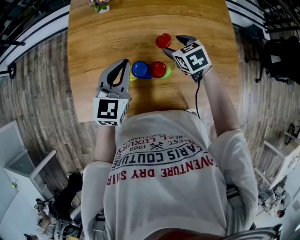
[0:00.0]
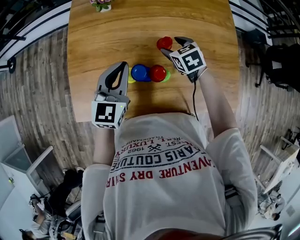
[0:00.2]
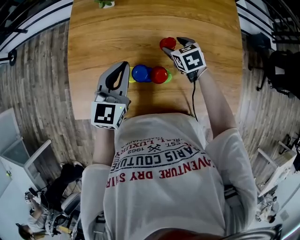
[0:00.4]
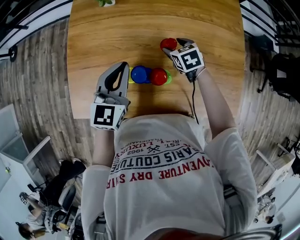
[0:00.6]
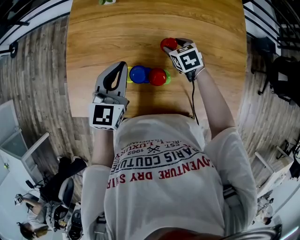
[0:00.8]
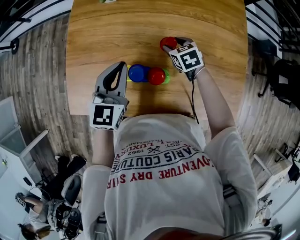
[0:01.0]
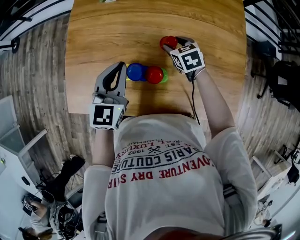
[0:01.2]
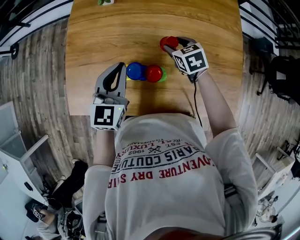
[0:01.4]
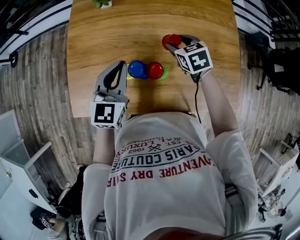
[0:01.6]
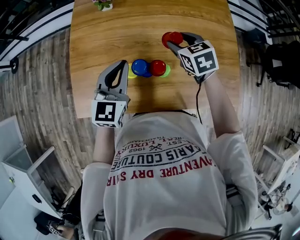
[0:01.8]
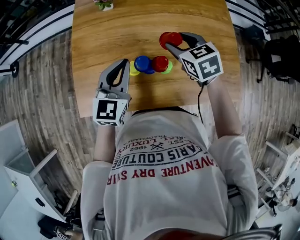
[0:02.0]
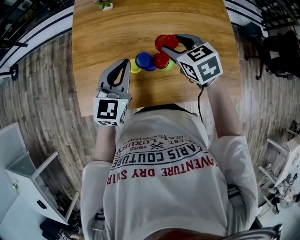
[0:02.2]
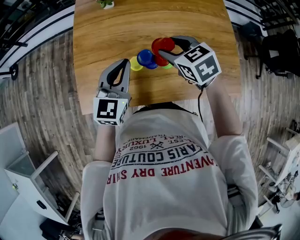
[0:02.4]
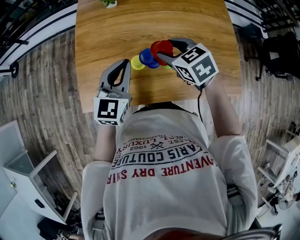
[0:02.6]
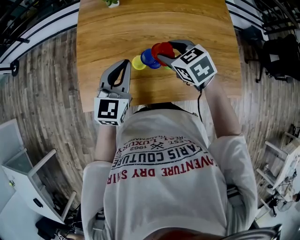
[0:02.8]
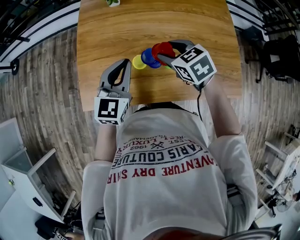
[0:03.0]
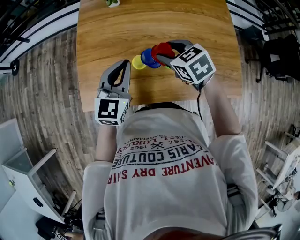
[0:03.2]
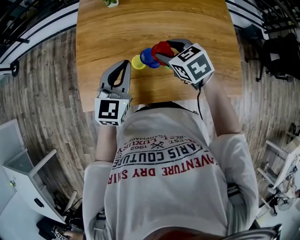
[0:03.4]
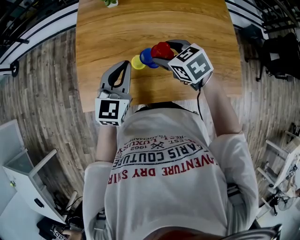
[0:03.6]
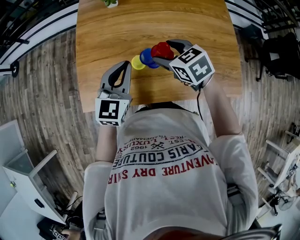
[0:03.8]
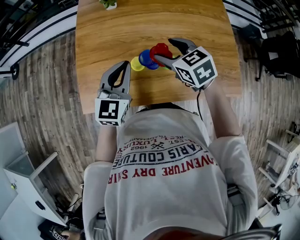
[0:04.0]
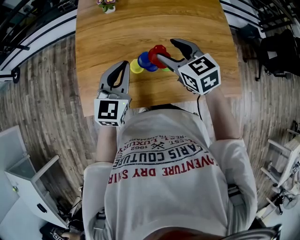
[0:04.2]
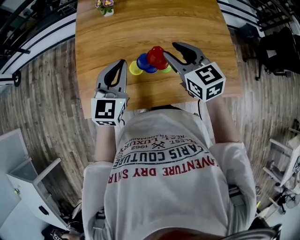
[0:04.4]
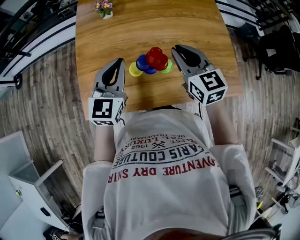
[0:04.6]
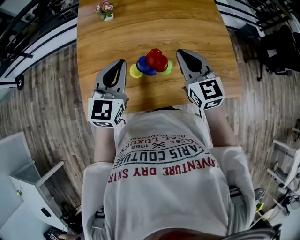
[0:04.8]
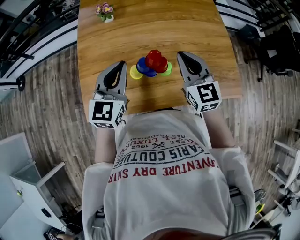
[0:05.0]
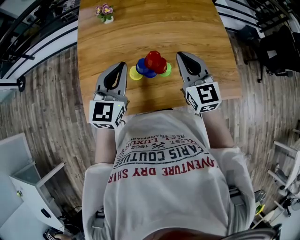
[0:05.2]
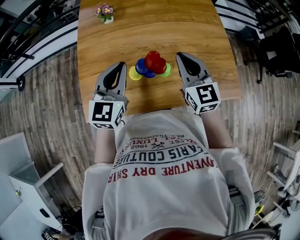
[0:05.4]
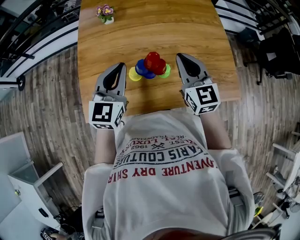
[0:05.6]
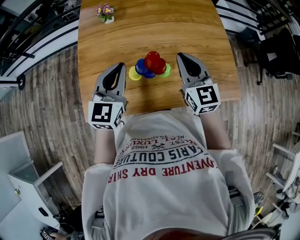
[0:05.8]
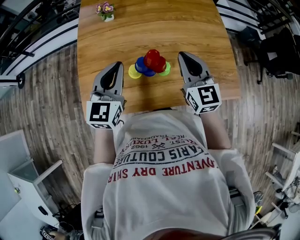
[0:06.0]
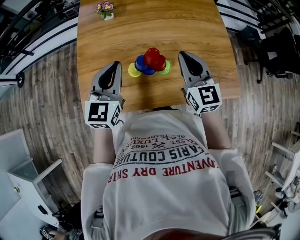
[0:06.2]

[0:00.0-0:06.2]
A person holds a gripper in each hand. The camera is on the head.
0:00.0 to 0:01.6: The right gripper reaches some 10 cm downward, then returns.
0:01.6 to 0:03.2: The left gripper shifts some 5 cm to the left; the right gripper goes about 15 cm to the left, backward and upward.
0:03.2 to 0:04.6: The right gripper shifts some 10 cm upward and to the right, turns by approximately 40 degrees, and closes up.
0:04.6 to 0:06.2: There are only small adjustments of the grippers.

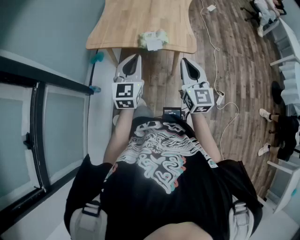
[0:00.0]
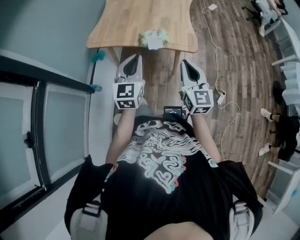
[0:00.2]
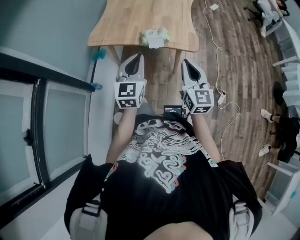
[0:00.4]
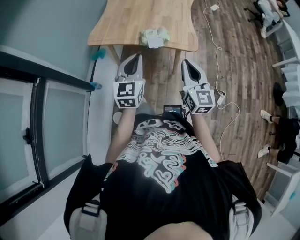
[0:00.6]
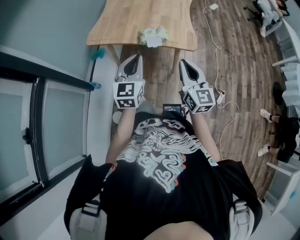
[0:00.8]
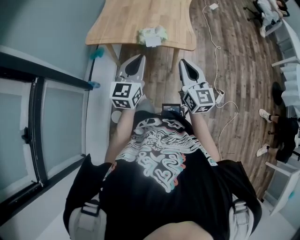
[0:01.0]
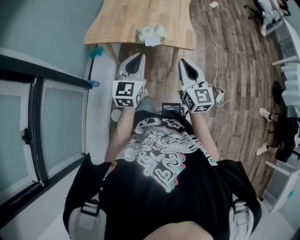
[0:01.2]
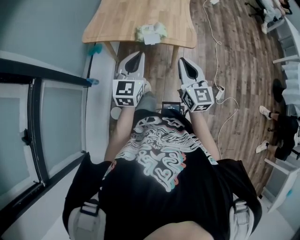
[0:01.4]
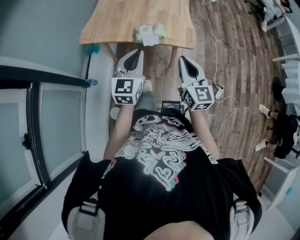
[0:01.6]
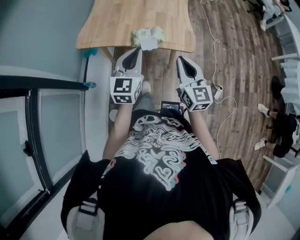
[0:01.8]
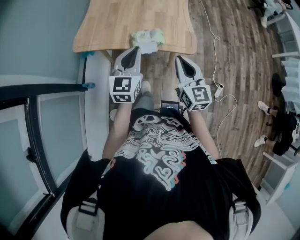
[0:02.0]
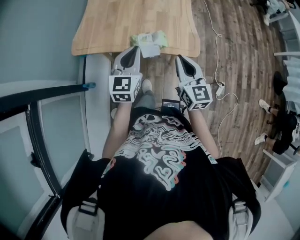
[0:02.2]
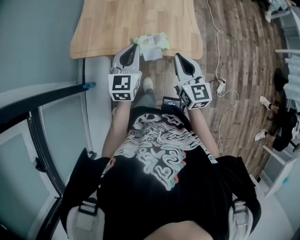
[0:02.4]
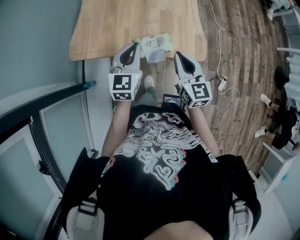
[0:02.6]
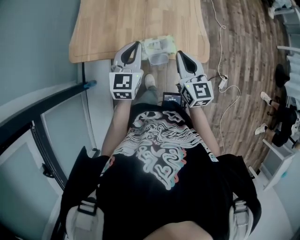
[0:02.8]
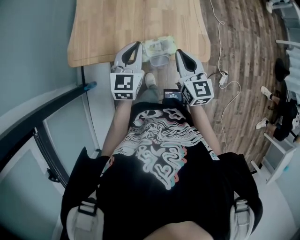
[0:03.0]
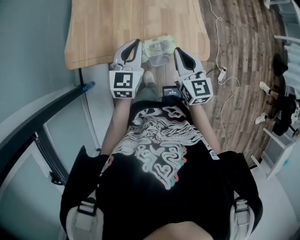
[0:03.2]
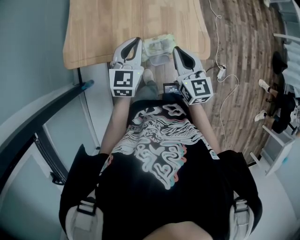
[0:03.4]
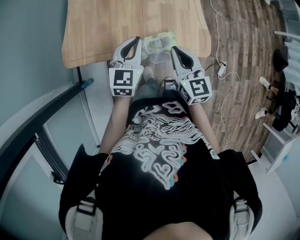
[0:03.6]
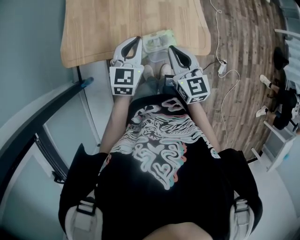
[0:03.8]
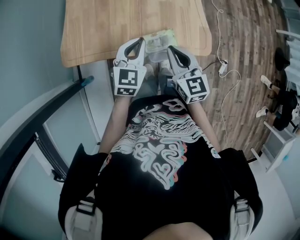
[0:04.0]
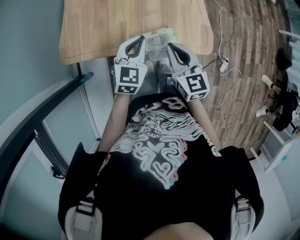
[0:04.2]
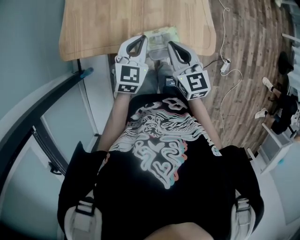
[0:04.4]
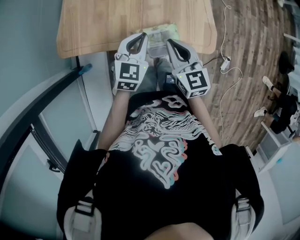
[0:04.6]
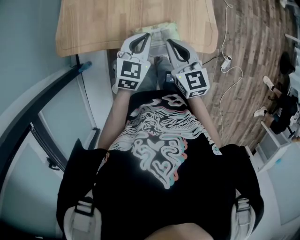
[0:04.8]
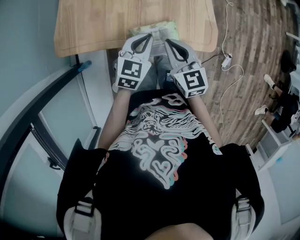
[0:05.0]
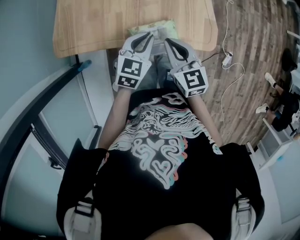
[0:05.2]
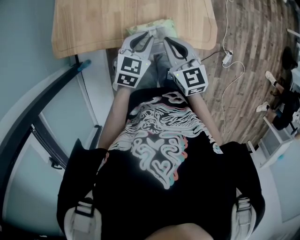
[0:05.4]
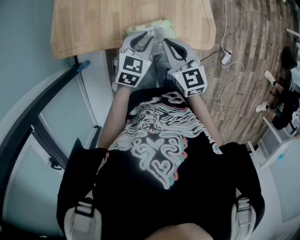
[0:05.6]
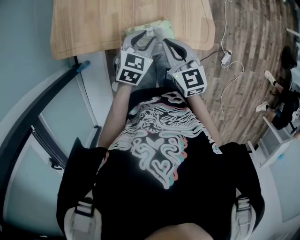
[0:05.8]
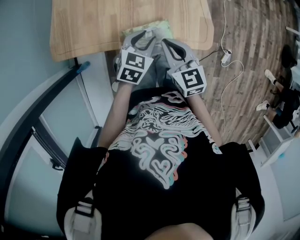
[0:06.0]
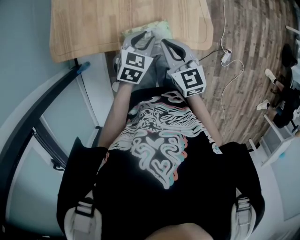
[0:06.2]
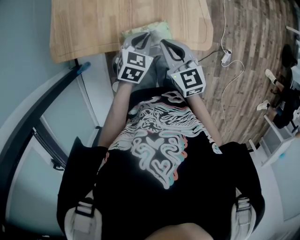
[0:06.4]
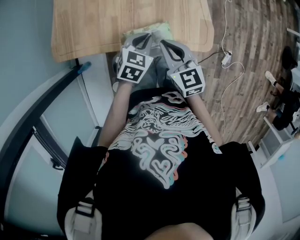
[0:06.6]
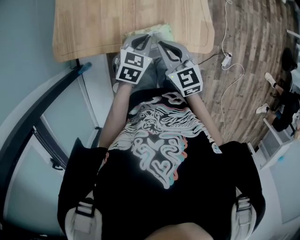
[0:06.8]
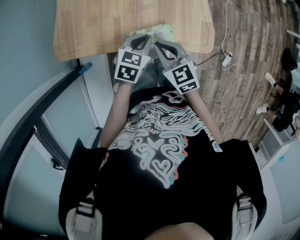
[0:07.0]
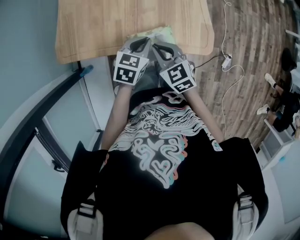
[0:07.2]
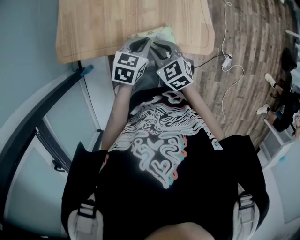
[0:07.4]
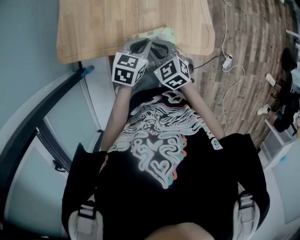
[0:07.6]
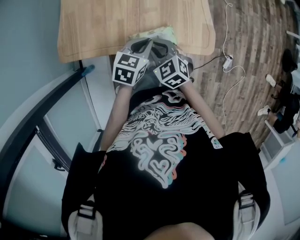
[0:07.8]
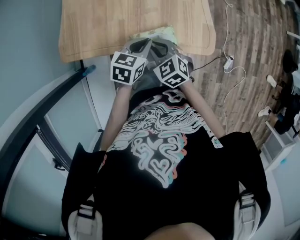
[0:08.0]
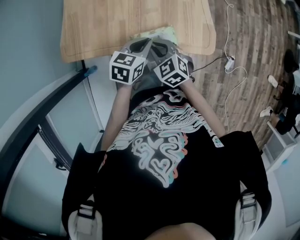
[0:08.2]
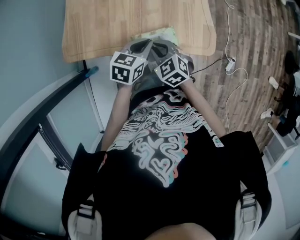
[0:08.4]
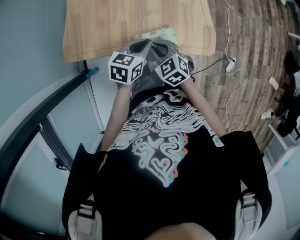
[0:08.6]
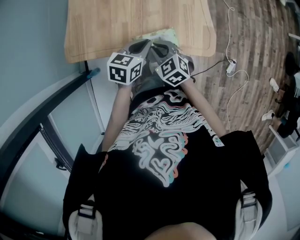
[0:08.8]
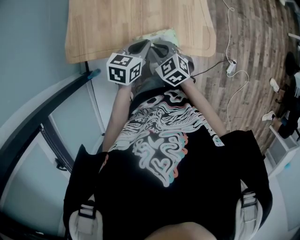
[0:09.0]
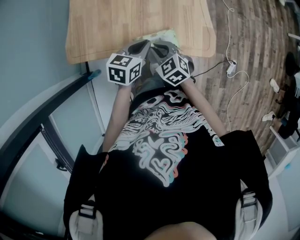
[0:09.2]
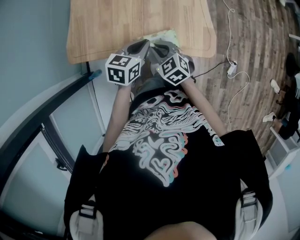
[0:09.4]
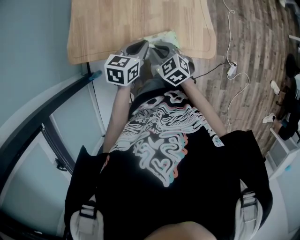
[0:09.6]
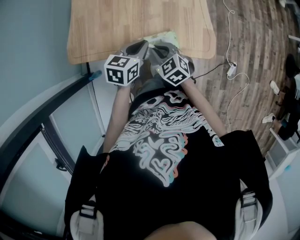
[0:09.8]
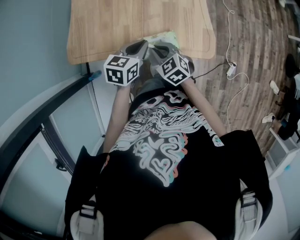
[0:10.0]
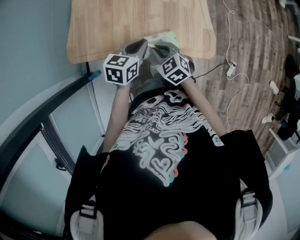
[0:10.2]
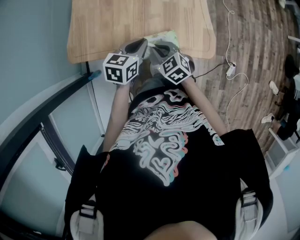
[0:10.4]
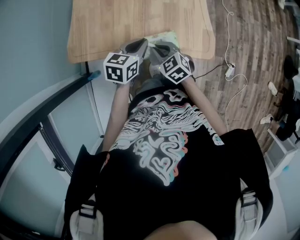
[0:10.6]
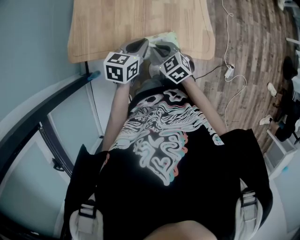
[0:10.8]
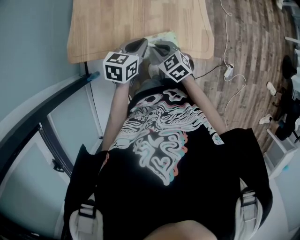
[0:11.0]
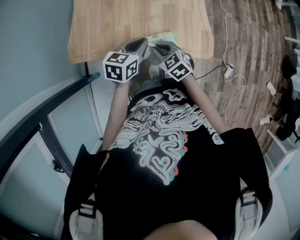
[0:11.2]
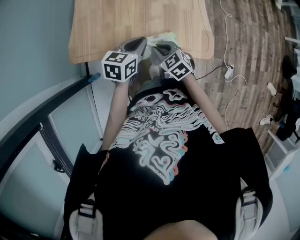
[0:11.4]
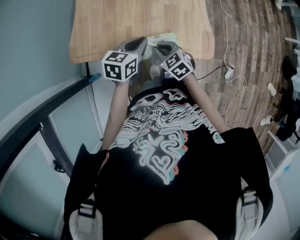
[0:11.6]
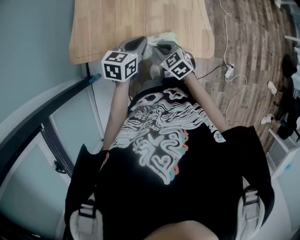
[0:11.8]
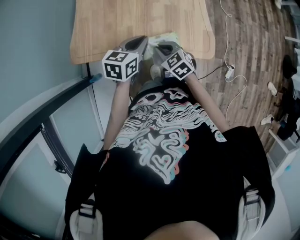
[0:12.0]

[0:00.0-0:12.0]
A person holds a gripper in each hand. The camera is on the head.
0:00.0 to 0:01.6: The left gripper moves roughly 5 cm. Meanwhile the right gripper ends up roughly 5 cm from where it was.
0:01.6 to 0:03.0: The two grippers go about 25 cm forward.
0:03.0 to 0:04.4: The left gripper moves downward, about 5 cm. Meanwhile the right gripper ends up about 5 cm from where it was.
0:04.4 to 0:06.0: The left gripper moves downward and to the right, approximately 10 cm, and opens its fingers.
0:06.0 to 0:07.6: The right gripper heads to the left, covering approximately 5 cm, and swivels about 30 degrees. Meanwhile the left gripper closes up.
0:07.6 to 0:10.4: There are only small adjustments of the grippers.
0:10.4 to 0:12.0: The grippers stay close to where they were, moving slightly.

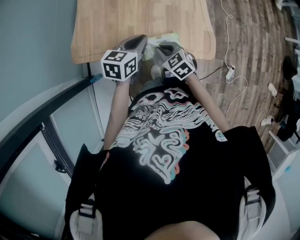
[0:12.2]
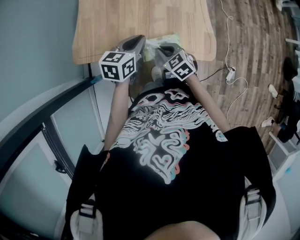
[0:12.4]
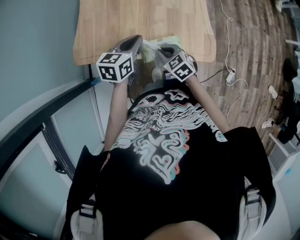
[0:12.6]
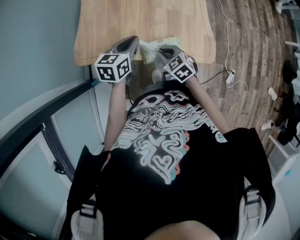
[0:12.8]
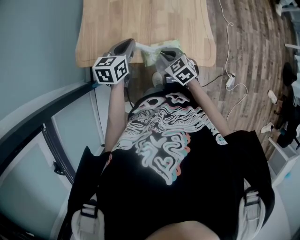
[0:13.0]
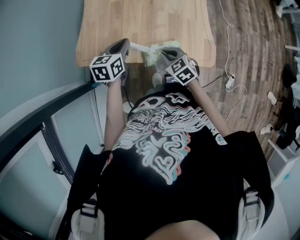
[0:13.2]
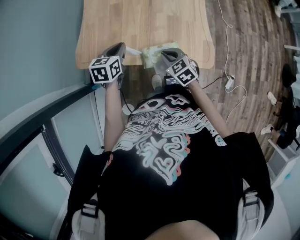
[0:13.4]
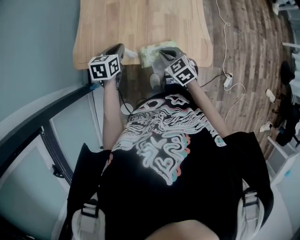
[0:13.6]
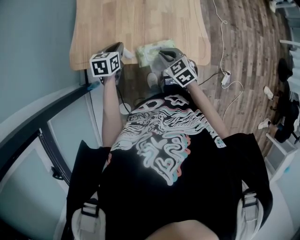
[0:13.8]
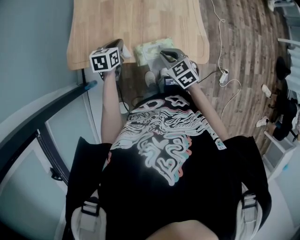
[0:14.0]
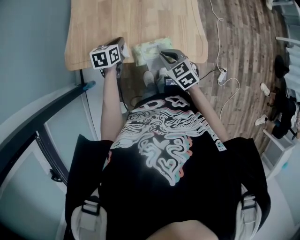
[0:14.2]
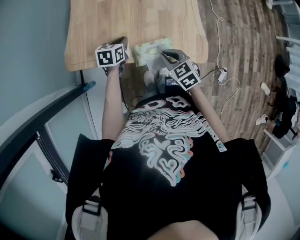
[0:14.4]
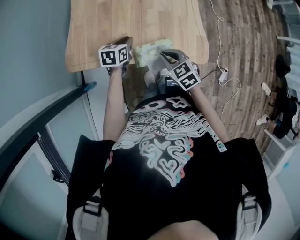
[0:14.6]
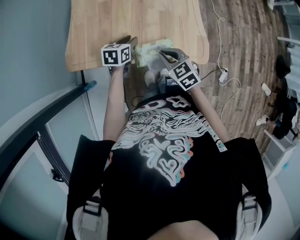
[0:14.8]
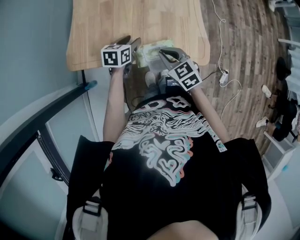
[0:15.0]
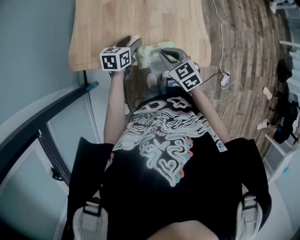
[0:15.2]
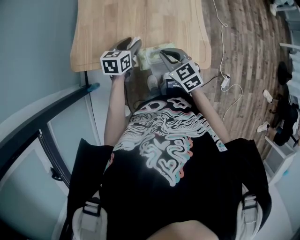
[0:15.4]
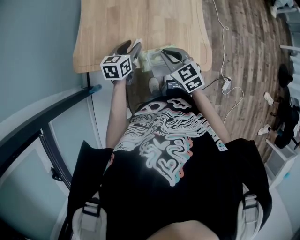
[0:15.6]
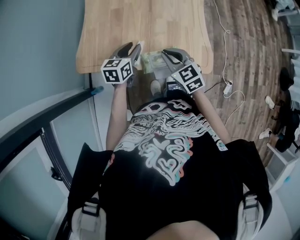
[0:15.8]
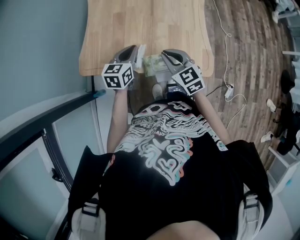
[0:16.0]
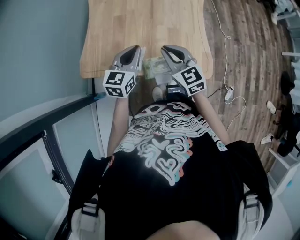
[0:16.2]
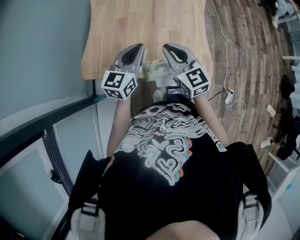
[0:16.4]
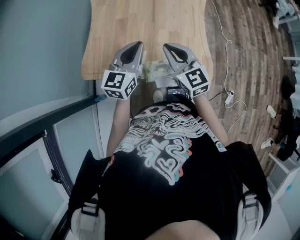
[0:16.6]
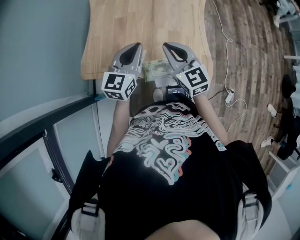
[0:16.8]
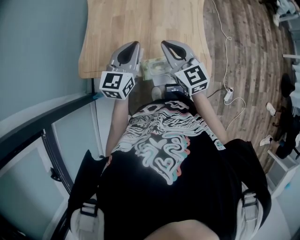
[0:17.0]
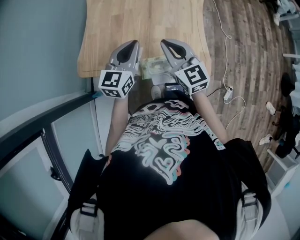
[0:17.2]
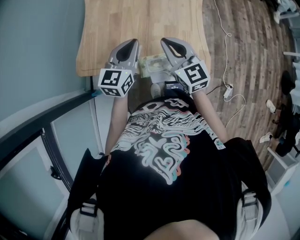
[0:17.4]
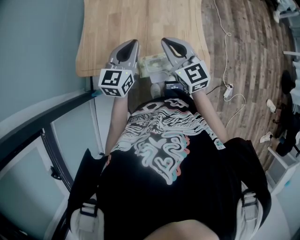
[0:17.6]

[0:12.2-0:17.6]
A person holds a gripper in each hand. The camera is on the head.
0:12.2 to 0:13.6: The left gripper goes approximately 10 cm to the left.
0:13.6 to 0:15.0: The left gripper is displaced to the right by about 5 cm, and opens up.
0:15.0 to 0:16.2: The two grippers go some 15 cm upward. The right gripper swivels some 20 degrees. Meanwhile the left gripper changes its angle by some 30 degrees, and closes its fingers.
0:16.2 to 0:17.6: The right gripper changes place by approximately 5 cm.
